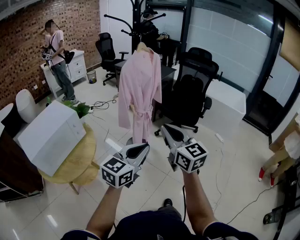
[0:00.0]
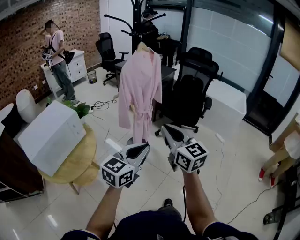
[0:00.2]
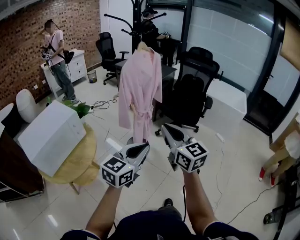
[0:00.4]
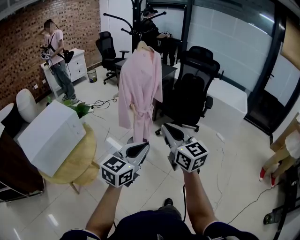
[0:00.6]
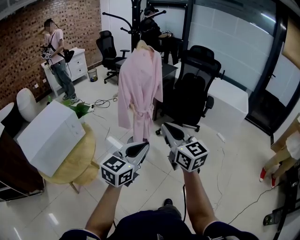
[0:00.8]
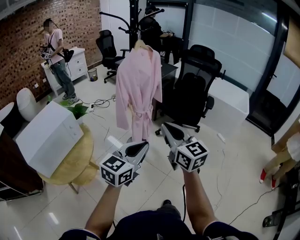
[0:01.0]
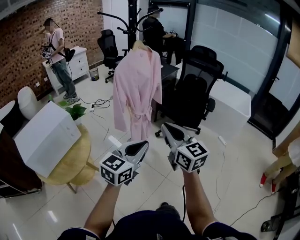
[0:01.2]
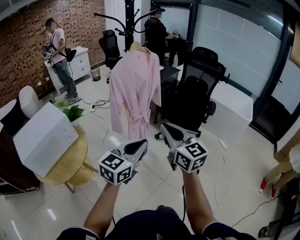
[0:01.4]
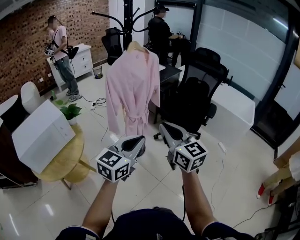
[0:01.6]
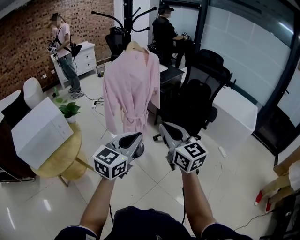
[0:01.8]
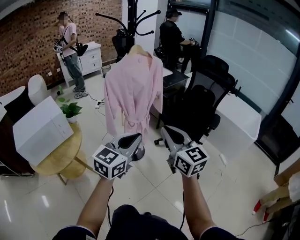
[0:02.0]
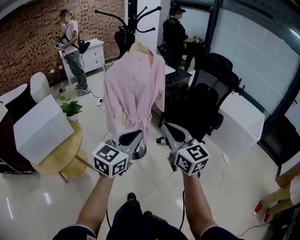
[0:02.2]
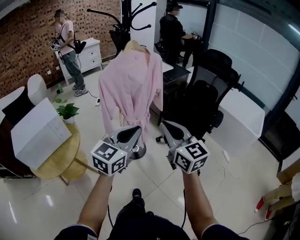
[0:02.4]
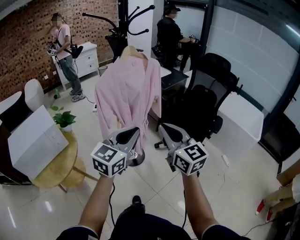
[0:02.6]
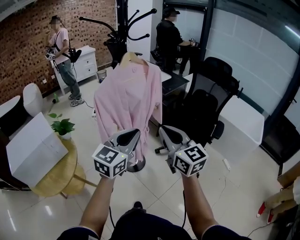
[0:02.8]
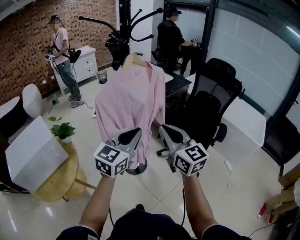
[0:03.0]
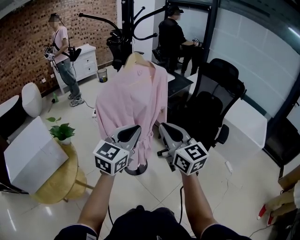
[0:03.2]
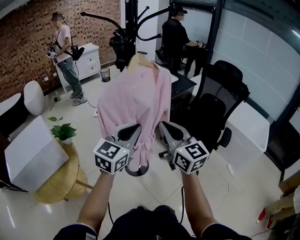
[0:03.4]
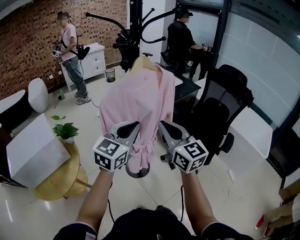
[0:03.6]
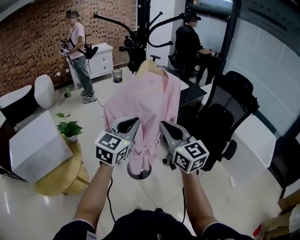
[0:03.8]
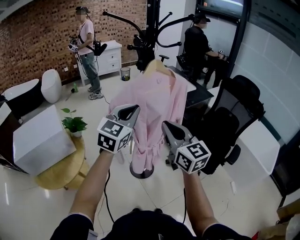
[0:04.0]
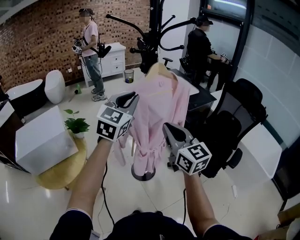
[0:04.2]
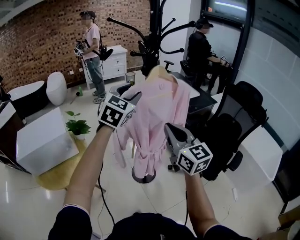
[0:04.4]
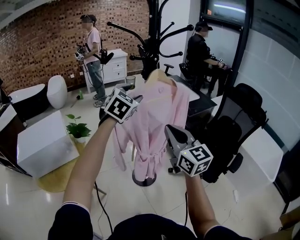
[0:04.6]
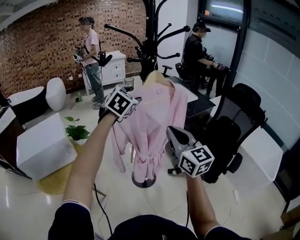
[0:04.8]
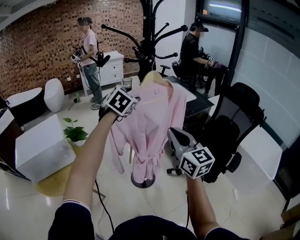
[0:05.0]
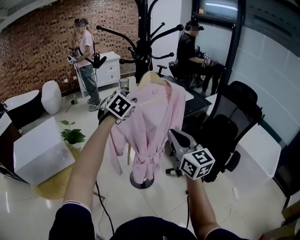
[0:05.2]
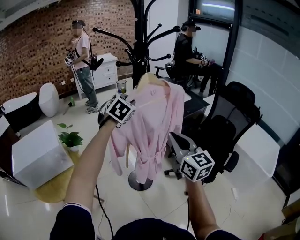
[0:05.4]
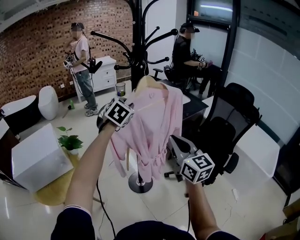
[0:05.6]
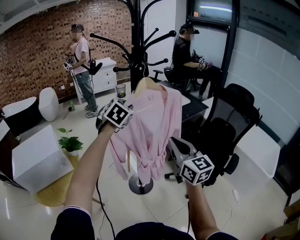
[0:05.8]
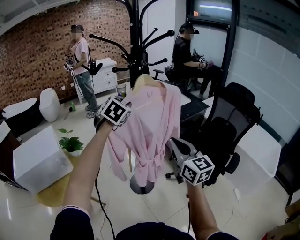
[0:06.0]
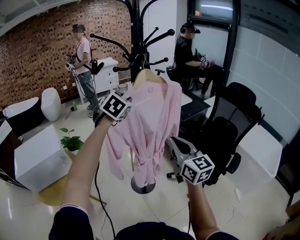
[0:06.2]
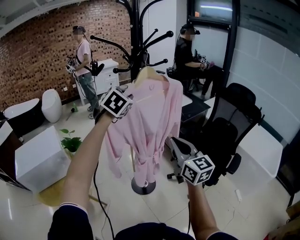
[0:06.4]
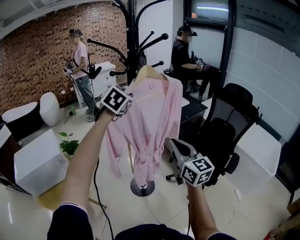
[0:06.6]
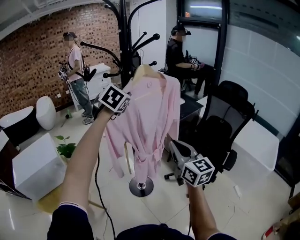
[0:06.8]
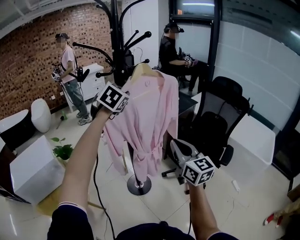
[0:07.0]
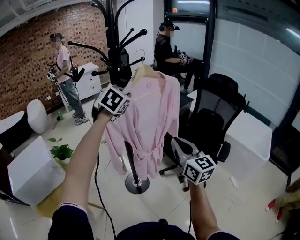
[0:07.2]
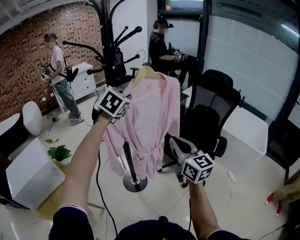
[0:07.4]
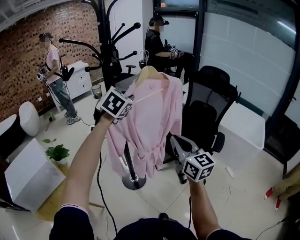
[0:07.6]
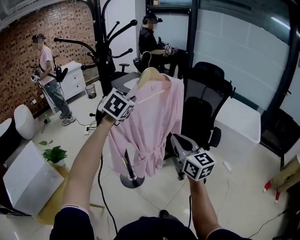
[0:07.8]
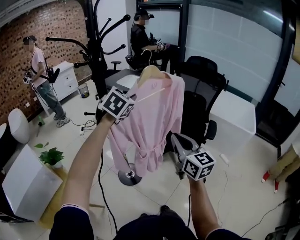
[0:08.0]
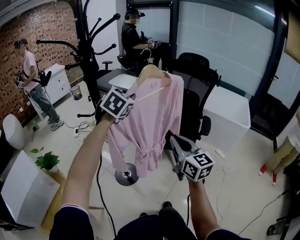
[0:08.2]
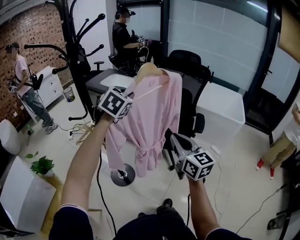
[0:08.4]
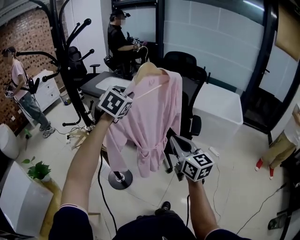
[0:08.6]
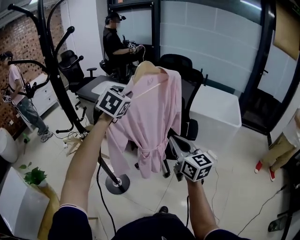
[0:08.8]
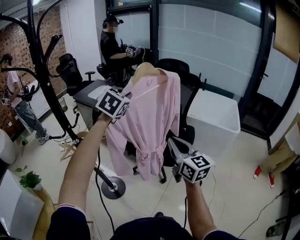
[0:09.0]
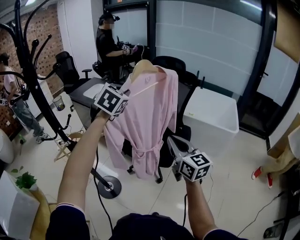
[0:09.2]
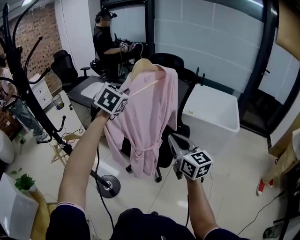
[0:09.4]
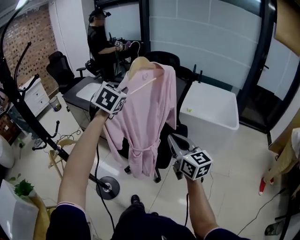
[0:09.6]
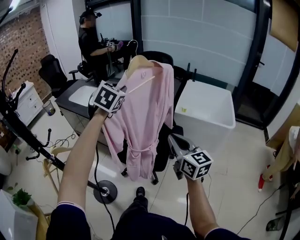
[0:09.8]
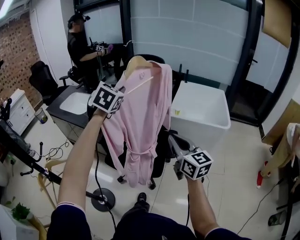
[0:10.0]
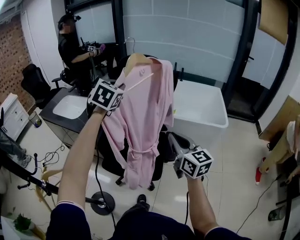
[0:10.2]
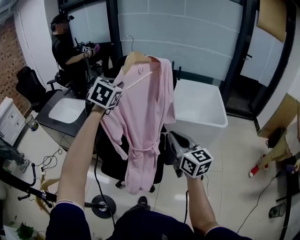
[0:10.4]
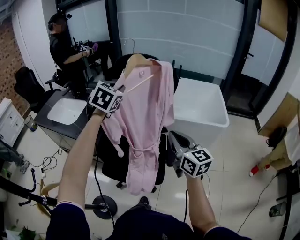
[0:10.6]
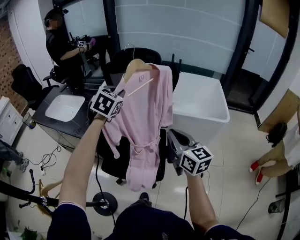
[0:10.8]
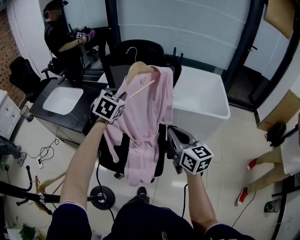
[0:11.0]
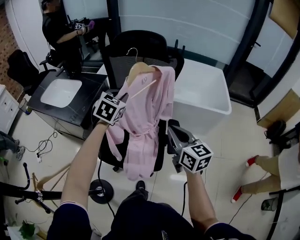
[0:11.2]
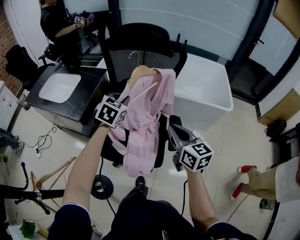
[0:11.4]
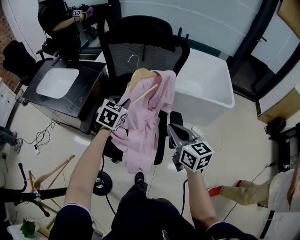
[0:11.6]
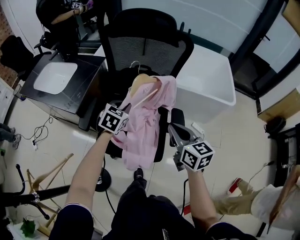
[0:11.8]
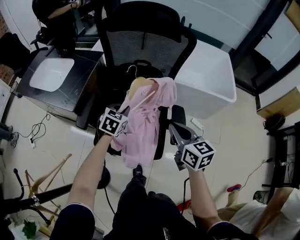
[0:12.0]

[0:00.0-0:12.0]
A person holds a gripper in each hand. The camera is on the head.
0:00.0 to 0:01.6: The grippers both shift forward and to the right by about 15 cm.
0:01.6 to 0:03.0: Both grippers travel together forward, some 20 cm.
0:03.0 to 0:04.4: The right gripper travels forward by roughly 10 cm. The left gripper moves forward, upward and to the left, some 25 cm, changes its angle by approximately 30 degrees, and opens.
0:04.4 to 0:06.0: The left gripper heads forward, covering about 5 cm, and closes. The right gripper is displaced to the right by some 5 cm.
0:06.0 to 0:07.6: The left gripper moves to the right, approximately 10 cm. Meanwhile the right gripper is displaced to the right and backward by approximately 10 cm.
0:07.6 to 0:09.0: Both grippers travel together to the right, approximately 20 cm.
0:09.0 to 0:10.4: The two grippers go approximately 30 cm forward and to the right.
0:10.4 to 0:12.0: The left gripper is displaced downward by roughly 35 cm, and changes its angle by approximately 30 degrees; the right gripper moves downward, approximately 15 cm, and turns by roughly 20 degrees.

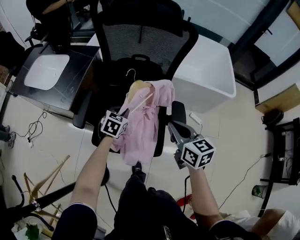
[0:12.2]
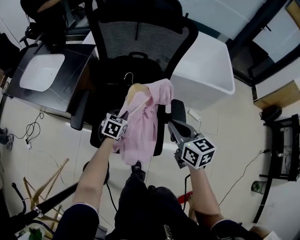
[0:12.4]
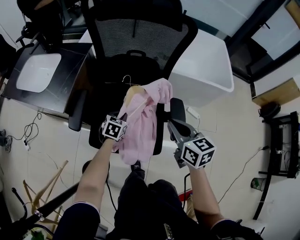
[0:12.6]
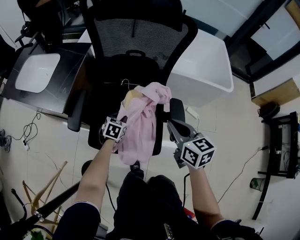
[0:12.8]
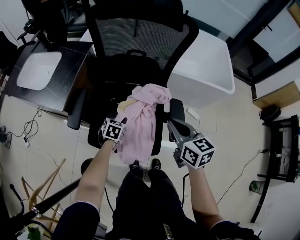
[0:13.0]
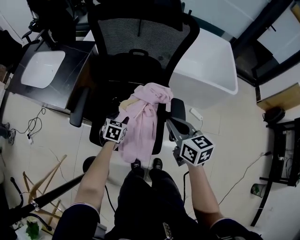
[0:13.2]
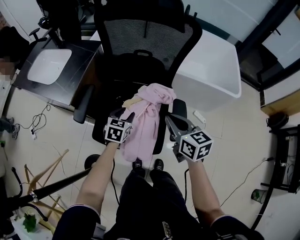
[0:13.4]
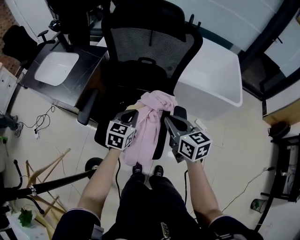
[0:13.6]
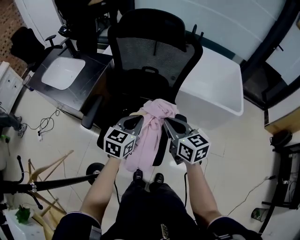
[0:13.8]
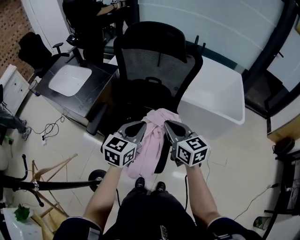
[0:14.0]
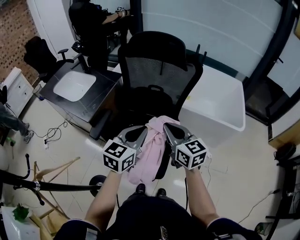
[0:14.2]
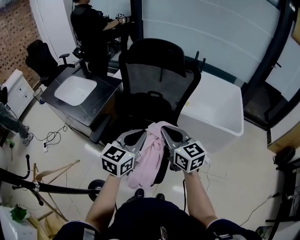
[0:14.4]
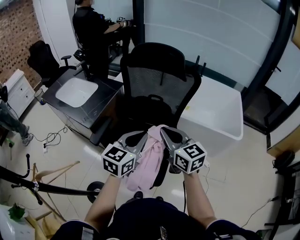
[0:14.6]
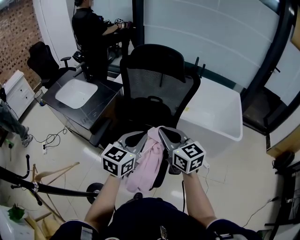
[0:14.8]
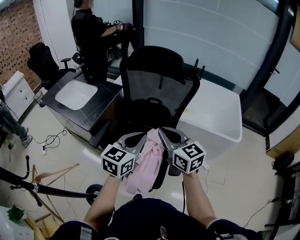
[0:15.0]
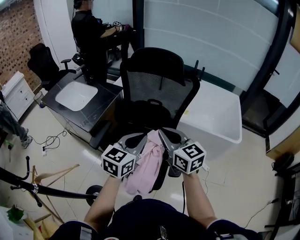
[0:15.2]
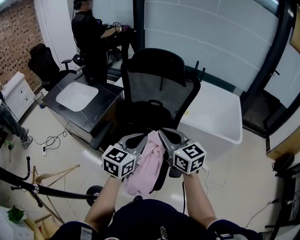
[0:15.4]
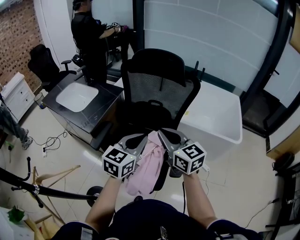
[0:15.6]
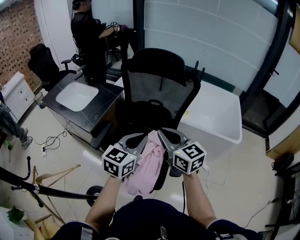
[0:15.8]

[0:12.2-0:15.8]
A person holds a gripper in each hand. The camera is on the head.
0:12.2 to 0:14.0: The left gripper moves upward, some 20 cm, swivels some 30 degrees, and opens and closes again, while the right gripper goes about 5 cm upward.
0:14.0 to 0:15.8: The two grippers go approximately 5 cm upward.

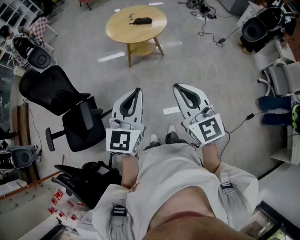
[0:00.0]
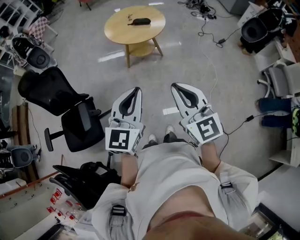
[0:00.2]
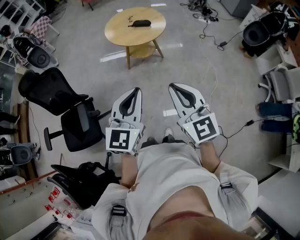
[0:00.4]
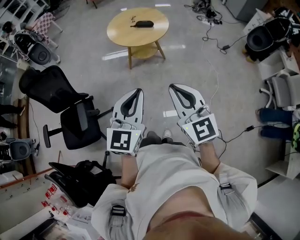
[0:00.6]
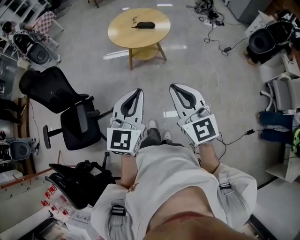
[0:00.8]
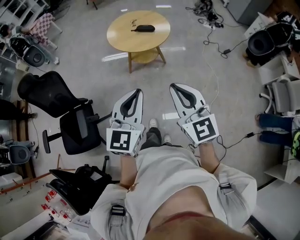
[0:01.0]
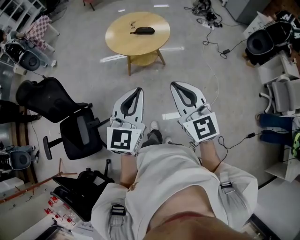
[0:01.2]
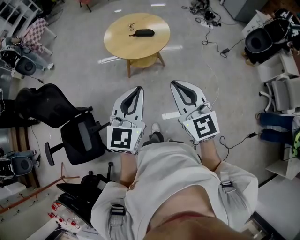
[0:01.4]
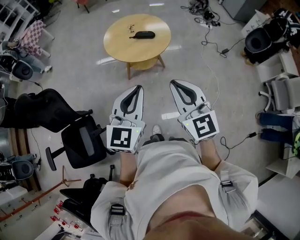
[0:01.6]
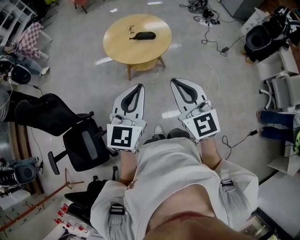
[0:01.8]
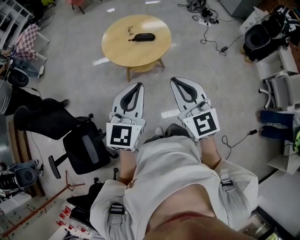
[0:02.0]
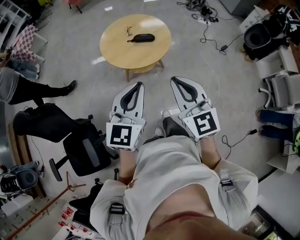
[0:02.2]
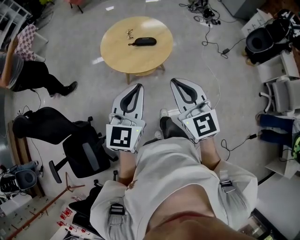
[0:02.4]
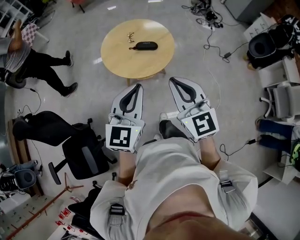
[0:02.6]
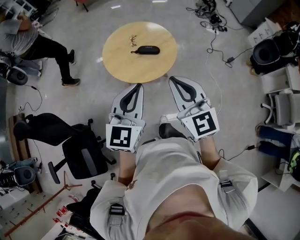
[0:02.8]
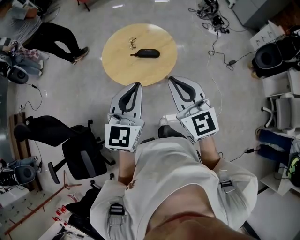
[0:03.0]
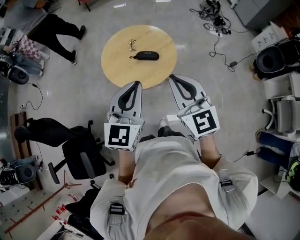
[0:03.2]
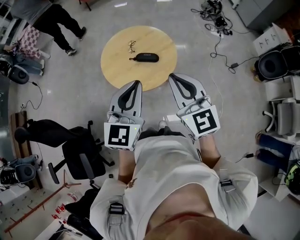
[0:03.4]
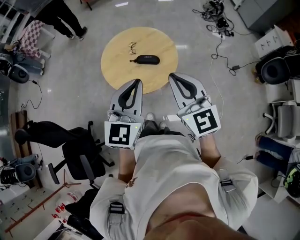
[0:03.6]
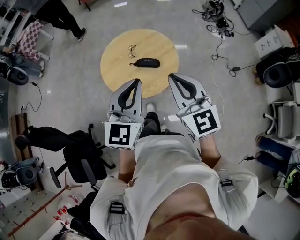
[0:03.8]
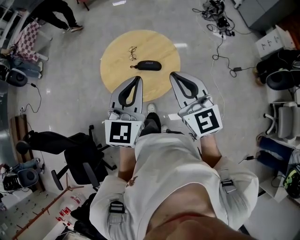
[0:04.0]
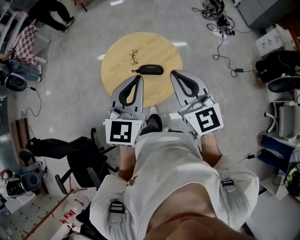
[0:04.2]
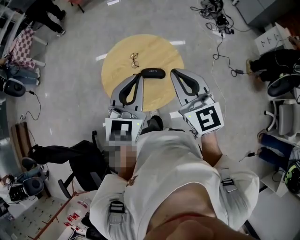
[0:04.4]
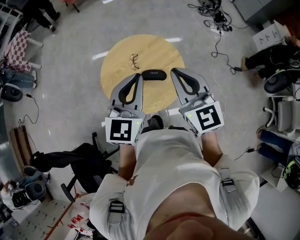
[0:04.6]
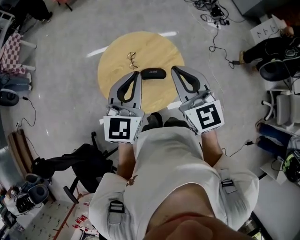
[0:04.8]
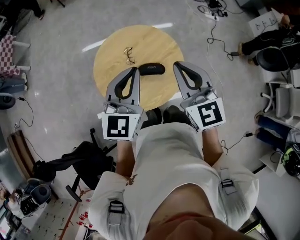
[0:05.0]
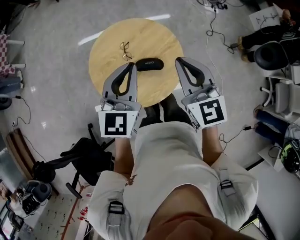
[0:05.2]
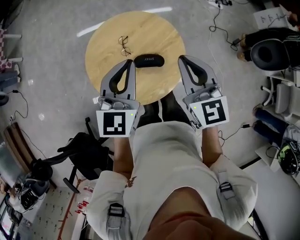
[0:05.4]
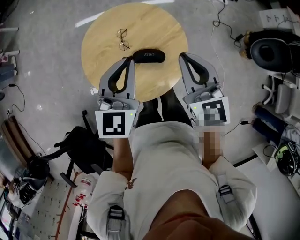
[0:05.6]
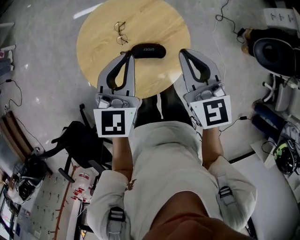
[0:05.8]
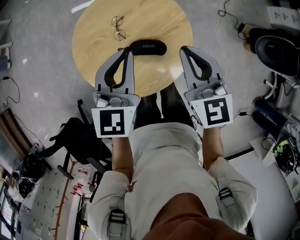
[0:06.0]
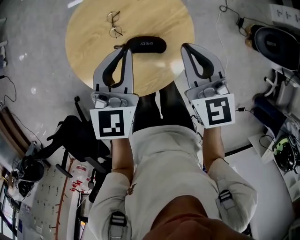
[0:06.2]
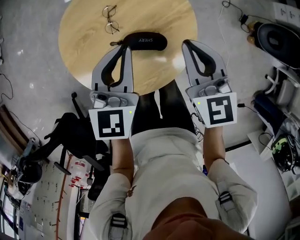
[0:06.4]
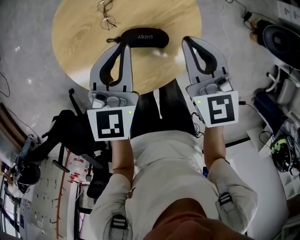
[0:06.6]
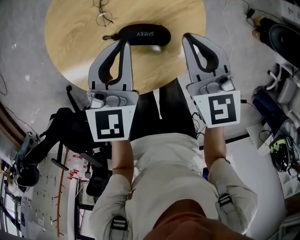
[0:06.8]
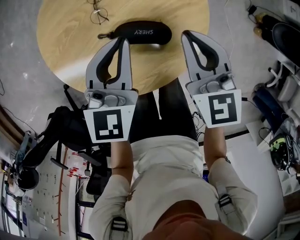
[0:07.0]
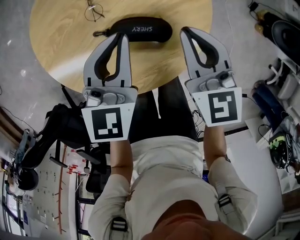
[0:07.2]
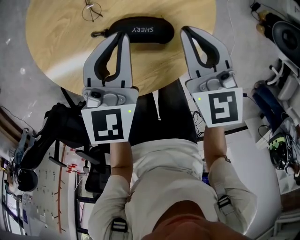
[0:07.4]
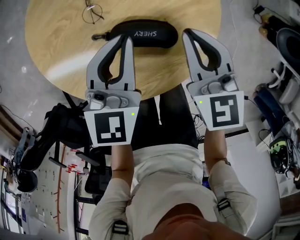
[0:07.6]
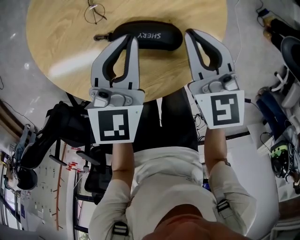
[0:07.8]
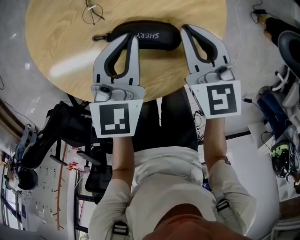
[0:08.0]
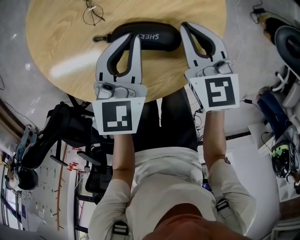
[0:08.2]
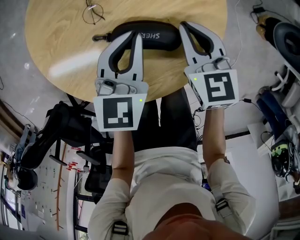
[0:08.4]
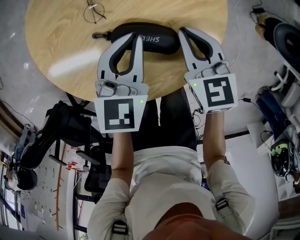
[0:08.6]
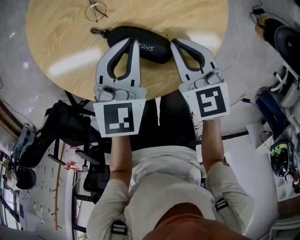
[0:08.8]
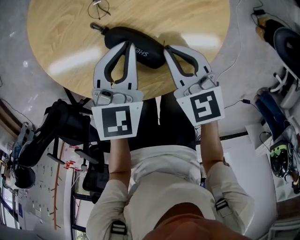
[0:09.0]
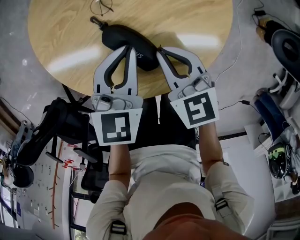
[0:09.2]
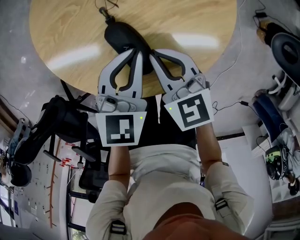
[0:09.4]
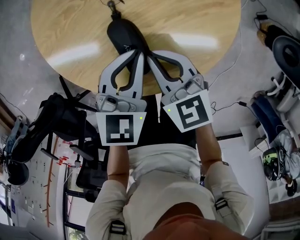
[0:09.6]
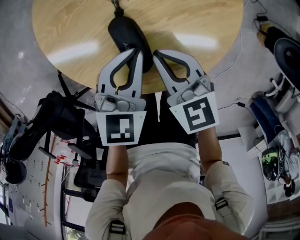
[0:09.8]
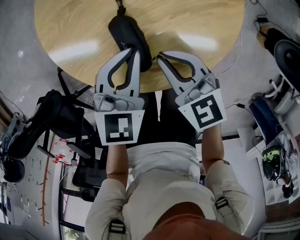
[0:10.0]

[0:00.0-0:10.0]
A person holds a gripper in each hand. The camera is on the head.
0:00.0 to 0:01.4: The two grippers go roughly 20 cm forward.
0:01.4 to 0:02.8: The two grippers go approximately 25 cm forward.
0:02.8 to 0:04.2: Both grippers travel together forward, approximately 25 cm.
0:04.2 to 0:05.8: The two grippers go some 25 cm forward and downward.
0:05.8 to 0:07.2: The grippers both shift downward by some 20 cm.
0:07.2 to 0:08.6: The grippers both shift downward by approximately 10 cm.
0:08.6 to 0:10.0: The right gripper is displaced to the left and backward by approximately 15 cm, and swivels about 30 degrees. The left gripper goes roughly 10 cm to the left and backward.
